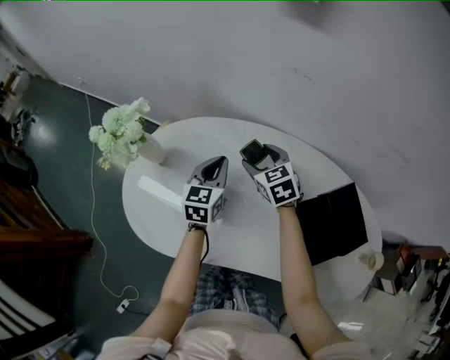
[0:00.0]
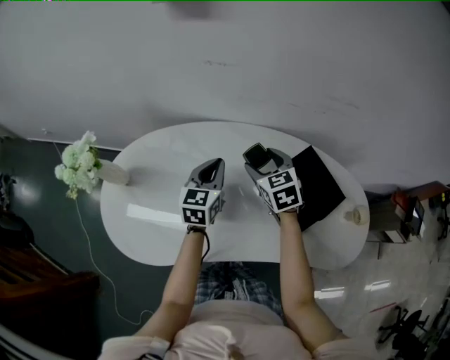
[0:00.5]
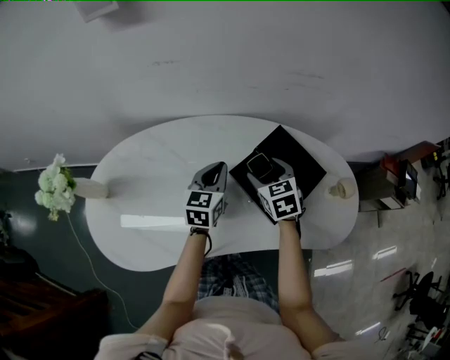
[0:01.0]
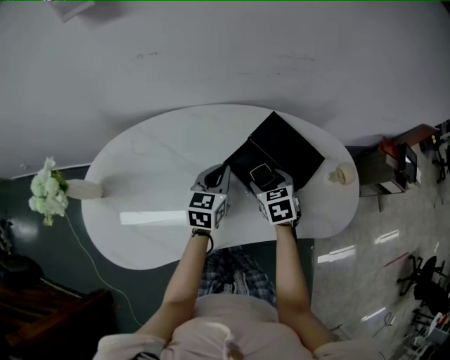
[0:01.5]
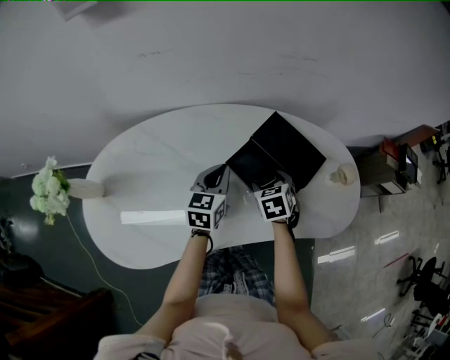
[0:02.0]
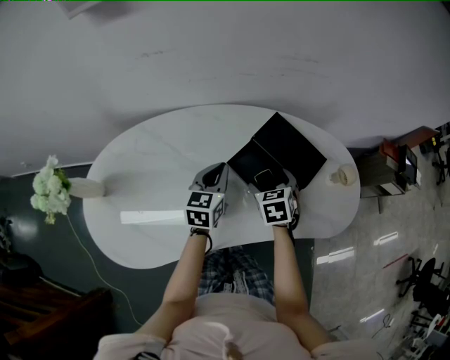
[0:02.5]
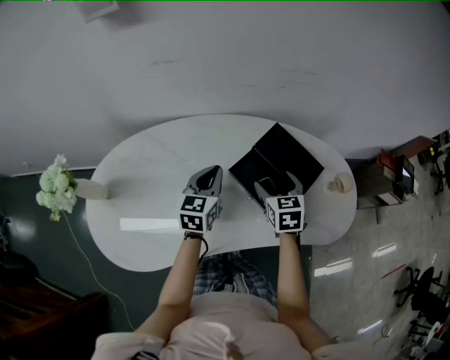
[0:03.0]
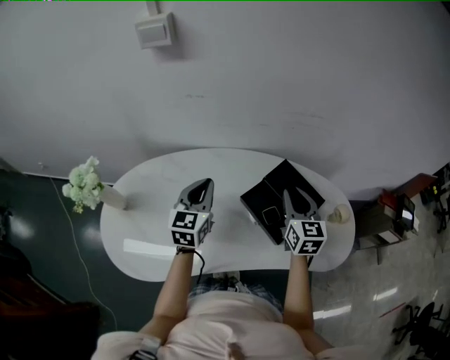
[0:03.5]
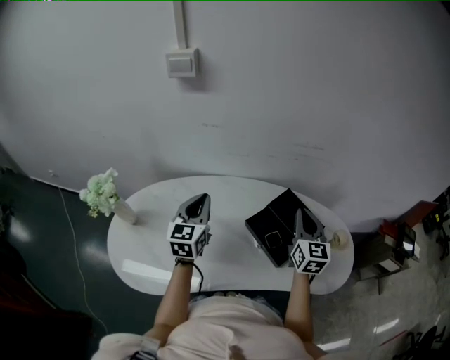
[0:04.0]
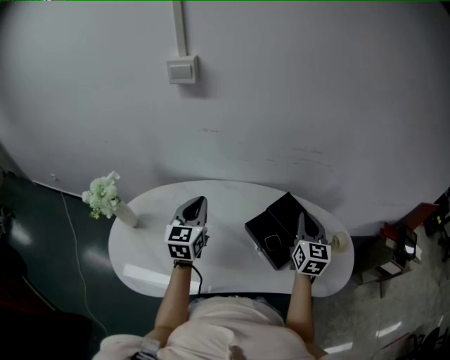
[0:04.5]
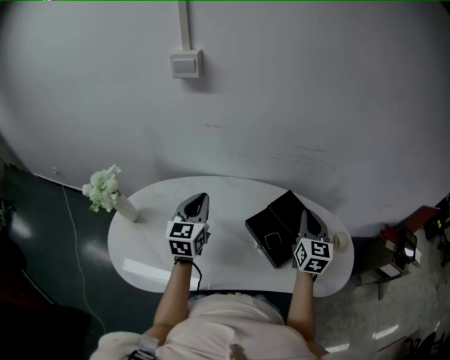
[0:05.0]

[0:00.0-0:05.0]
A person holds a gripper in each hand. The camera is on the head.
0:00.0 to 0:02.5: The right gripper shifts by some 35 cm, and rotates approximately 50 degrees, while the left gripper shifts by some 25 cm, and turns by about 30 degrees.
0:02.5 to 0:05.0: The right gripper moves upward, approximately 20 cm, tips its fingers upward by some 40 degrees, and closes up; the left gripper is displaced upward and to the left by some 20 cm, and changes its angle by some 30 degrees.

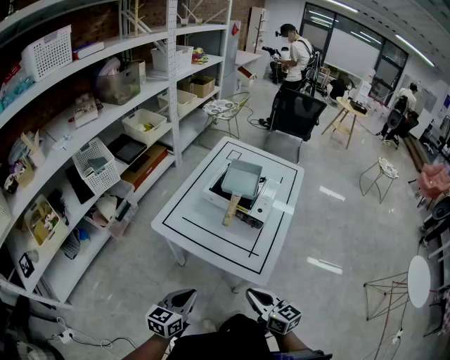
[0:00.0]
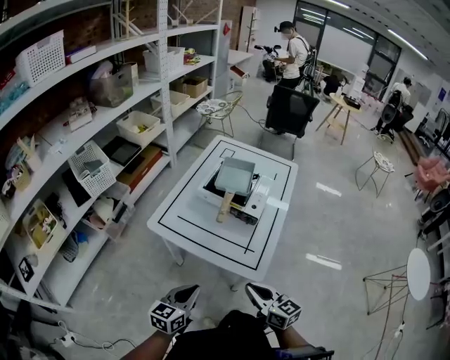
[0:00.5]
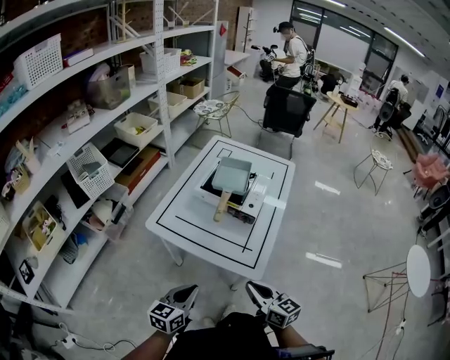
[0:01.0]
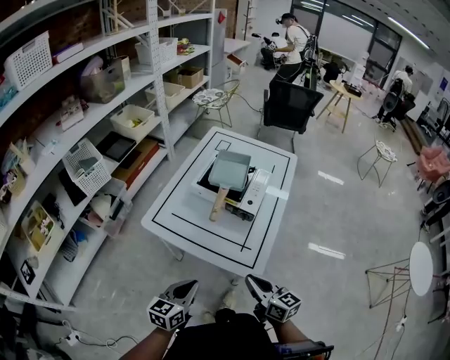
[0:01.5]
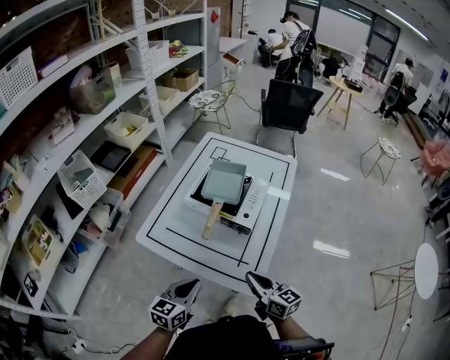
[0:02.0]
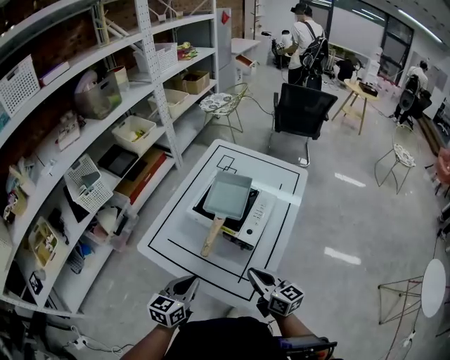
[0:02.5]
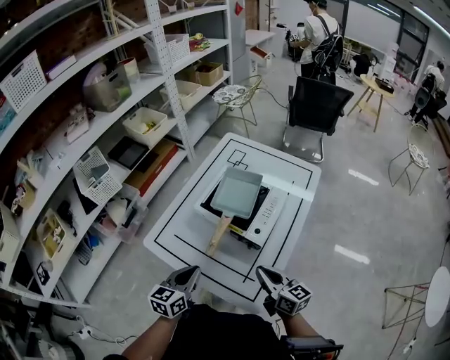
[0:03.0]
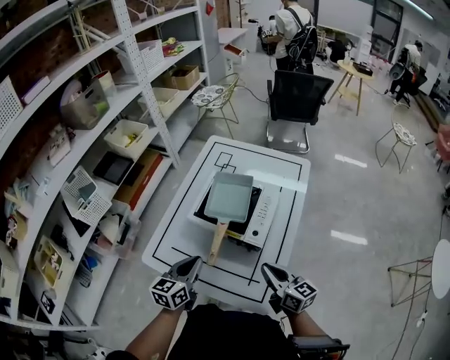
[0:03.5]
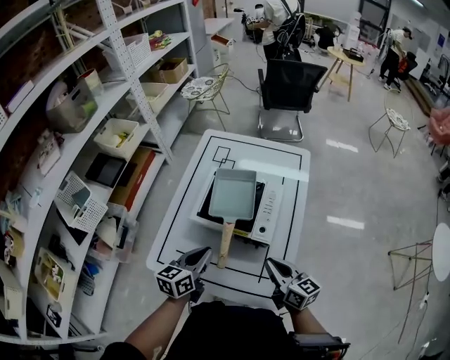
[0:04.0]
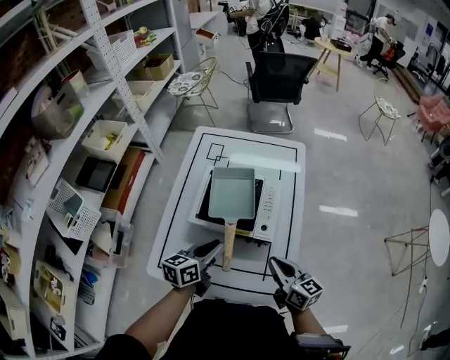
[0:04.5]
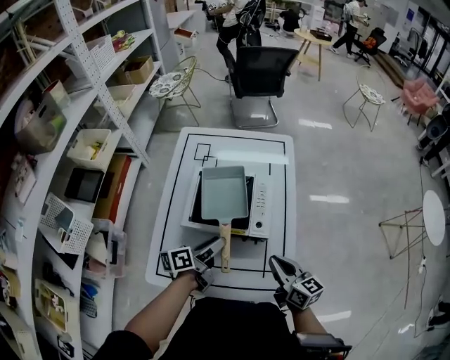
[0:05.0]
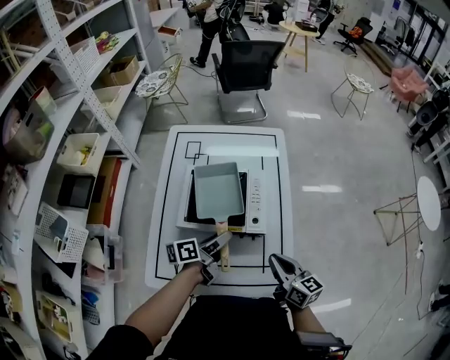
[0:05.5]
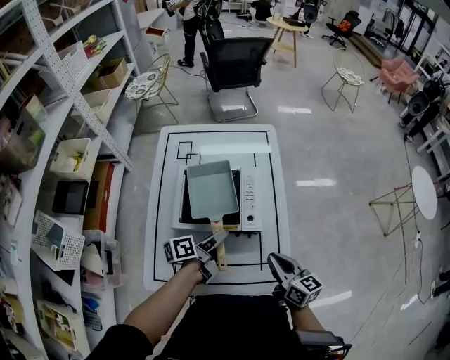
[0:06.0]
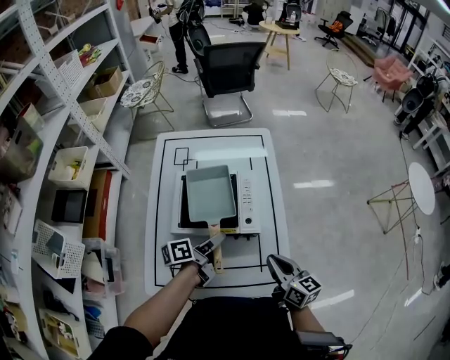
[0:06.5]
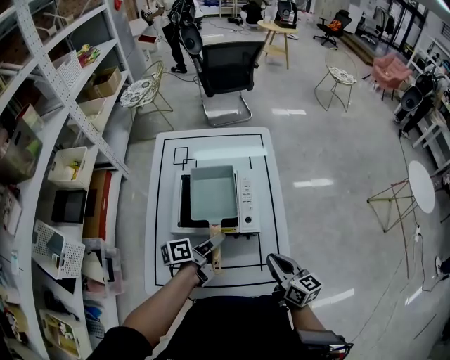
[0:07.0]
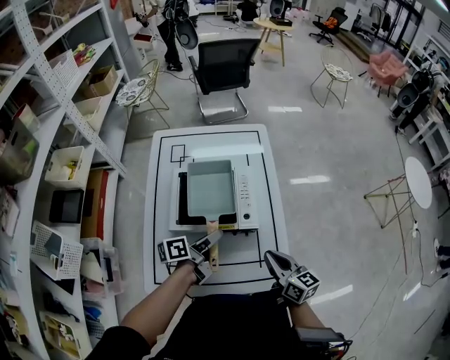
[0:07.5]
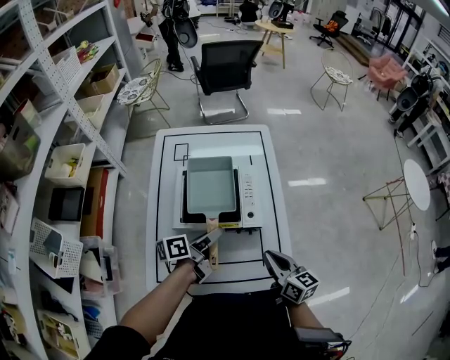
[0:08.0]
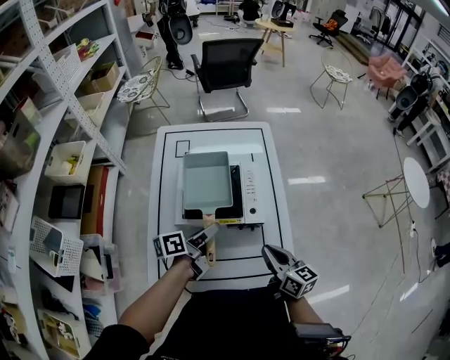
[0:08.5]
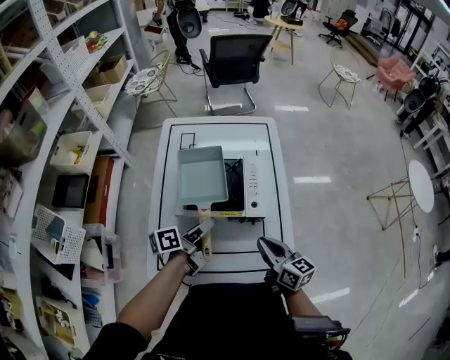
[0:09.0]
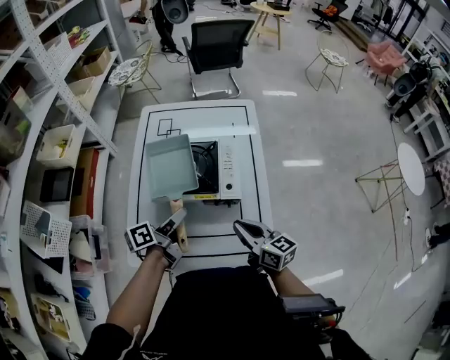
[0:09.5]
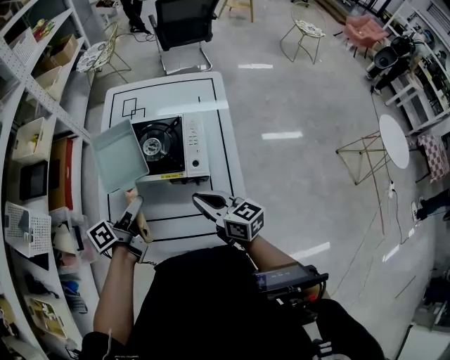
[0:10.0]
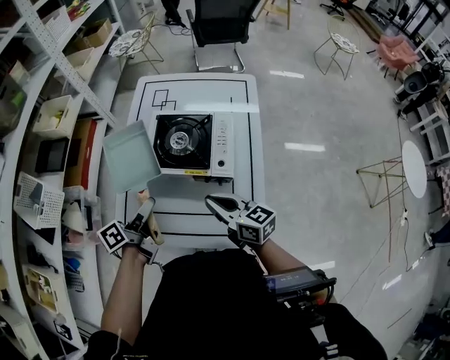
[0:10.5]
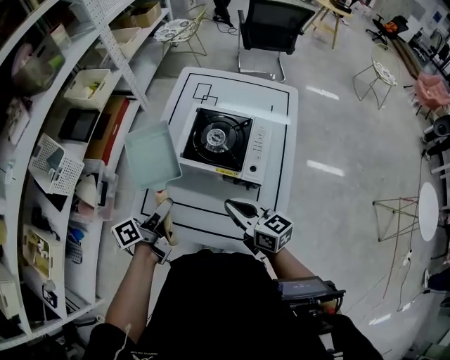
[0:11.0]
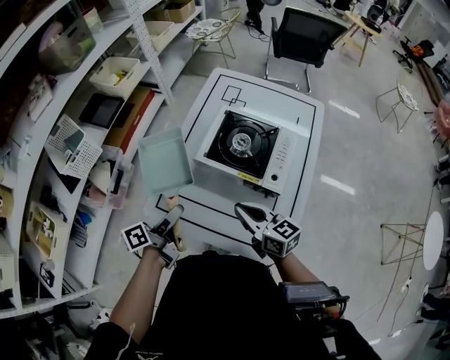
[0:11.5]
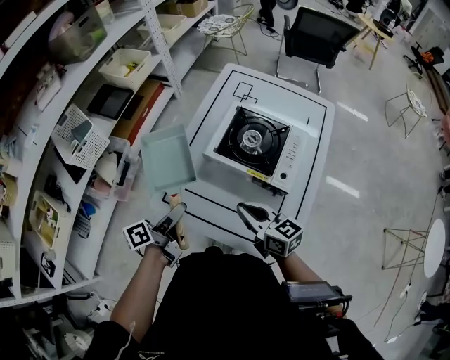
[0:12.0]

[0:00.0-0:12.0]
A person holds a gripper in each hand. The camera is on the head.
0:00.0 to 0:02.0: The two grippers go about 15 cm forward and to the right.
0:02.0 to 0:04.0: The left gripper travels forward by approximately 20 cm; the right gripper moves forward, roughly 15 cm.
0:04.0 to 0:06.0: The right gripper rotates roughly 20 degrees. Meanwhile the left gripper is displaced forward and to the right by roughly 10 cm, rotates around the line of its fingers by some 40 degrees, counterclockwise from behind, and opens its fingers.
0:06.0 to 0:08.0: The grippers move only a little.
0:08.0 to 0:10.0: The left gripper goes about 10 cm to the left and backward, while the right gripper shifts about 5 cm to the left, and changes its angle by some 20 degrees.
0:10.0 to 0:12.0: The right gripper goes some 10 cm to the left, and swivels some 20 degrees; the left gripper goes approximately 15 cm to the left and backward, and changes its angle by roughly 20 degrees.

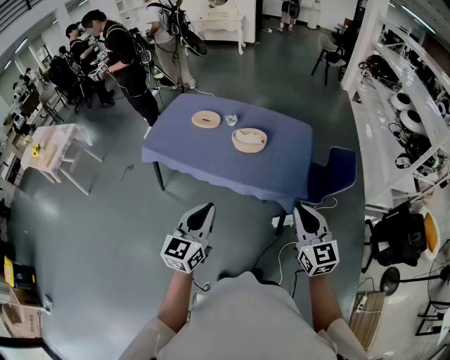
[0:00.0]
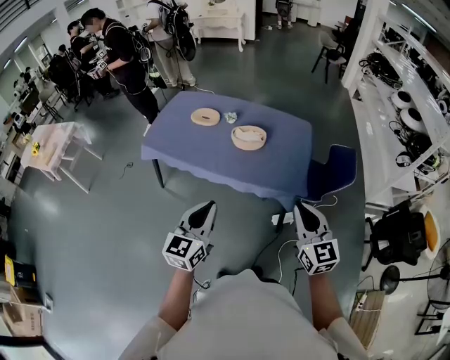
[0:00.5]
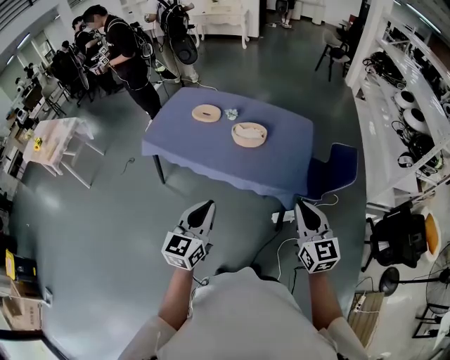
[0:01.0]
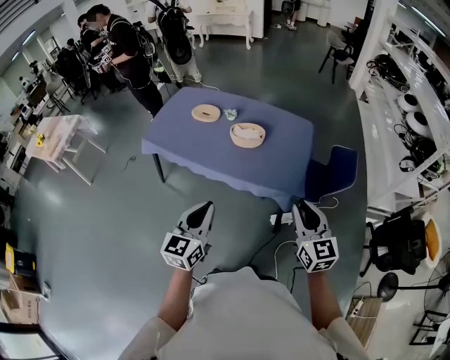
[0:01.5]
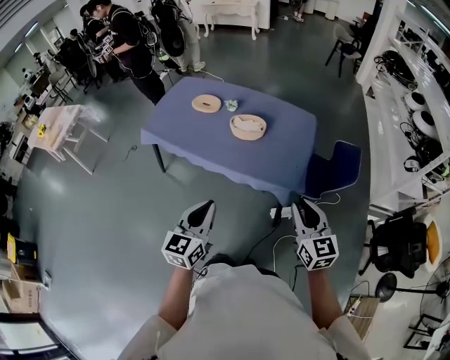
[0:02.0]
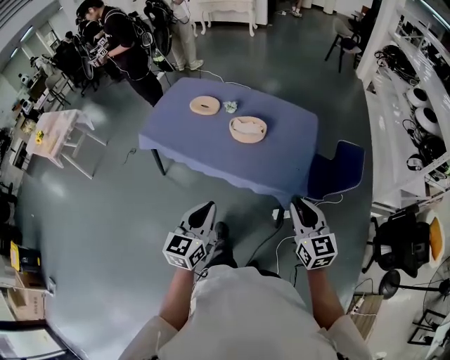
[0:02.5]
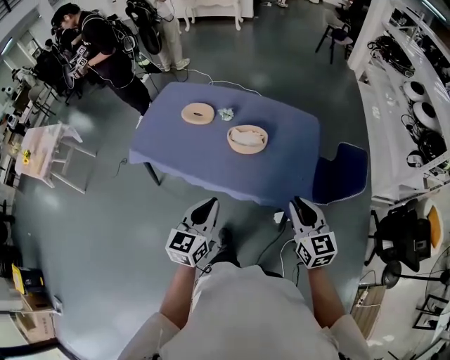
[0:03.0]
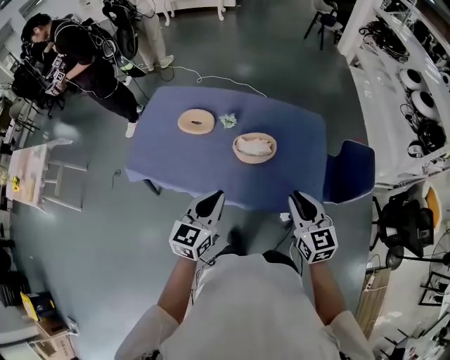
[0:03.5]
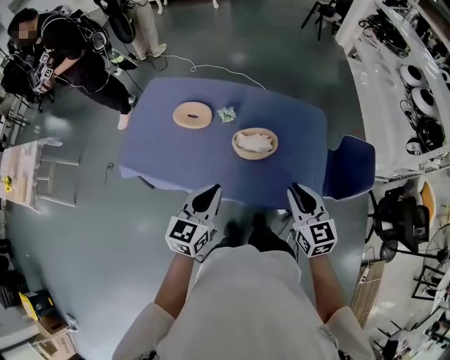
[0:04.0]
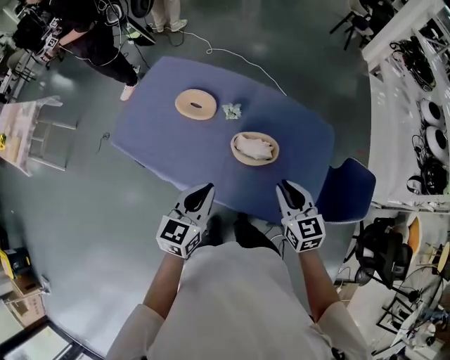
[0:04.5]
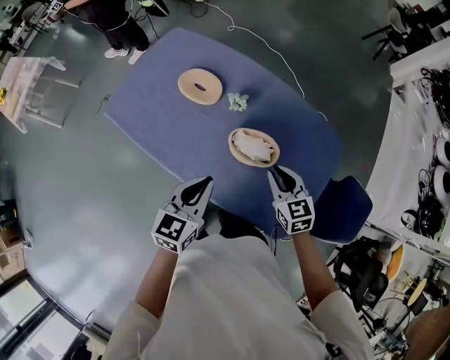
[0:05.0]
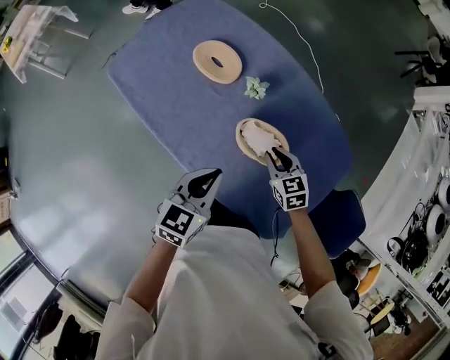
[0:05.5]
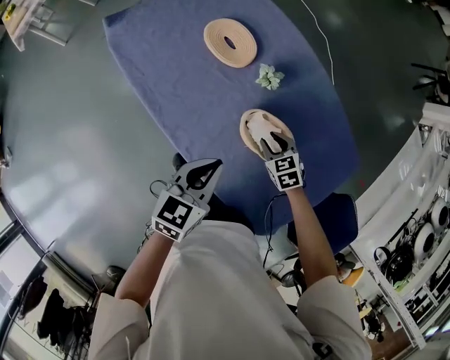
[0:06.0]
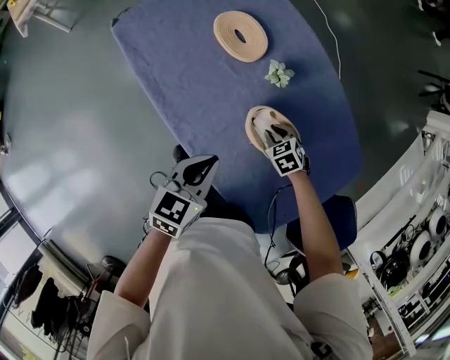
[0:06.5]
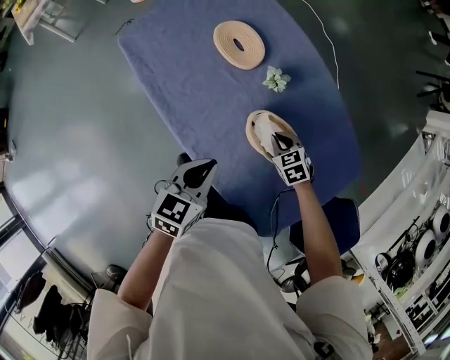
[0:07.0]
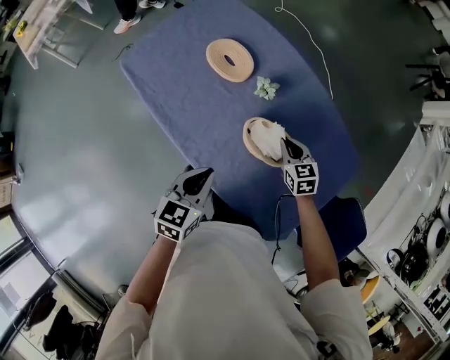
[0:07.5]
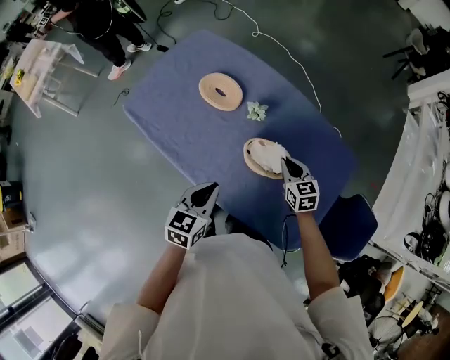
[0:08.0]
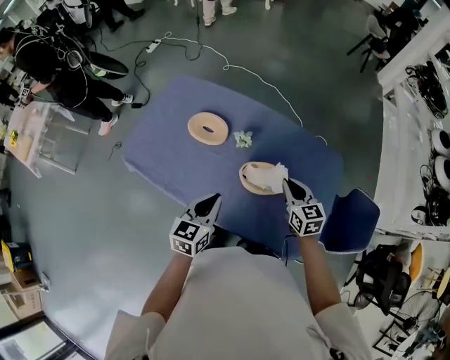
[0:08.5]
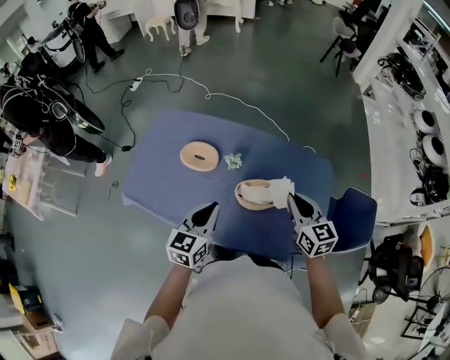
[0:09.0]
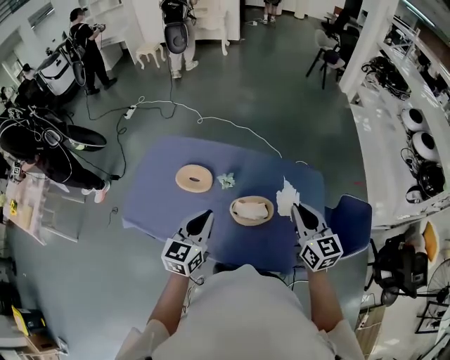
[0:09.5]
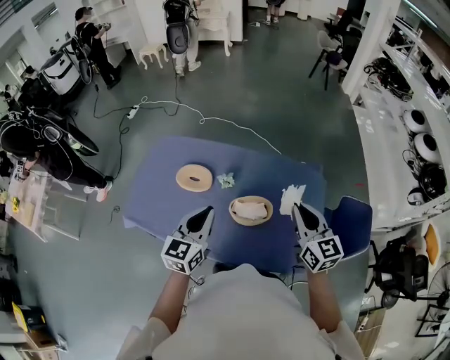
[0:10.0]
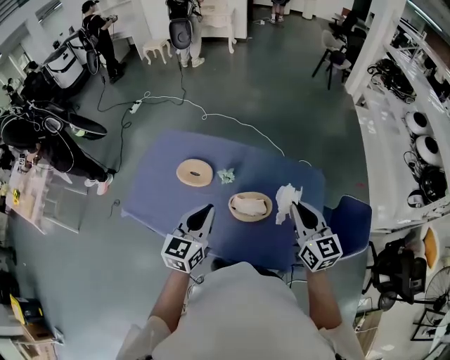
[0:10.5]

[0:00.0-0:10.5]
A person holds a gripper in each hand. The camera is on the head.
0:00.0 to 0:02.0: Both grippers move to the right, roughly 10 cm.
0:02.0 to 0:04.0: The right gripper moves forward and to the left, about 35 cm, while the left gripper goes about 35 cm forward.
0:04.0 to 0:06.5: The left gripper shifts approximately 15 cm downward, and rotates some 40 degrees, while the right gripper travels downward by about 40 cm, and angles its fingers downward, by some 50 degrees.
0:06.5 to 0:08.5: The right gripper heads upward, covering some 25 cm, and tips its fingers upward by roughly 40 degrees. The left gripper shifts about 10 cm upward, and rotates about 20 degrees.
0:08.5 to 0:10.5: The left gripper goes about 10 cm upward; the right gripper goes some 20 cm upward, and turns by roughly 20 degrees.
